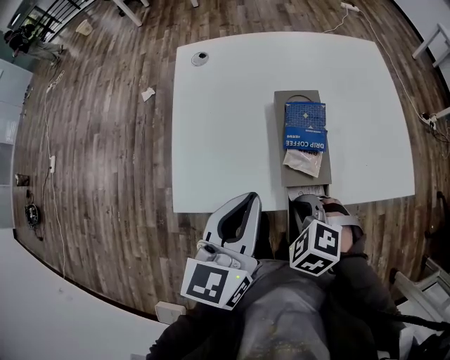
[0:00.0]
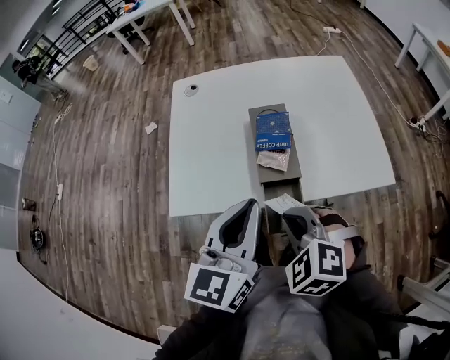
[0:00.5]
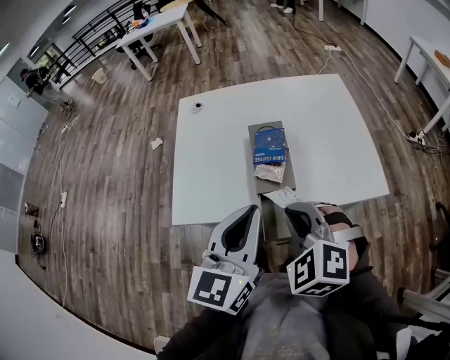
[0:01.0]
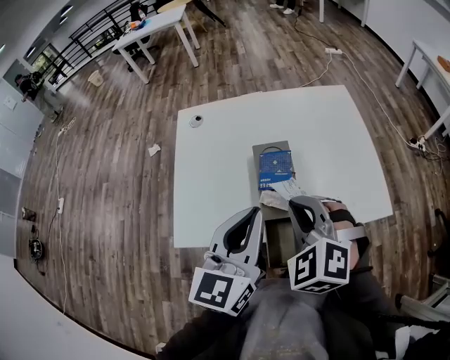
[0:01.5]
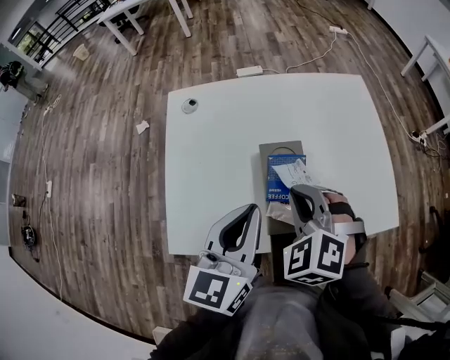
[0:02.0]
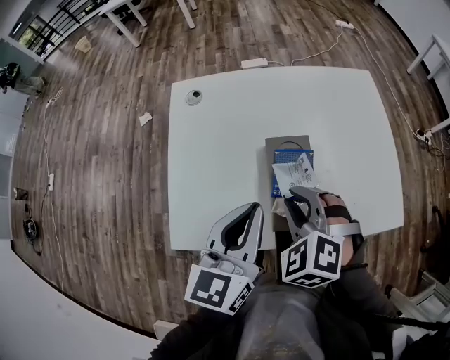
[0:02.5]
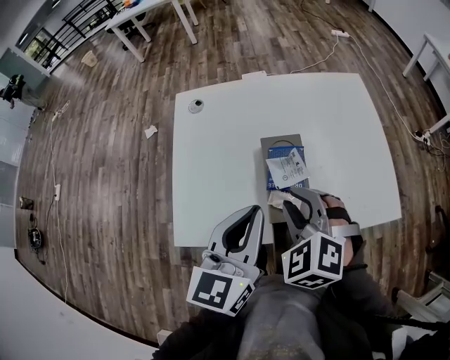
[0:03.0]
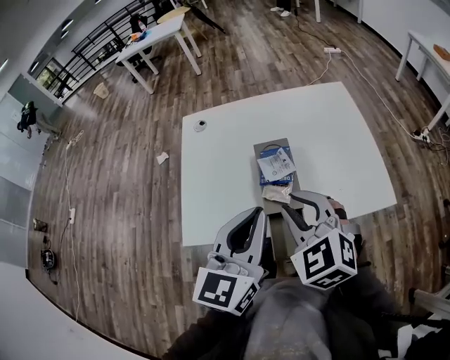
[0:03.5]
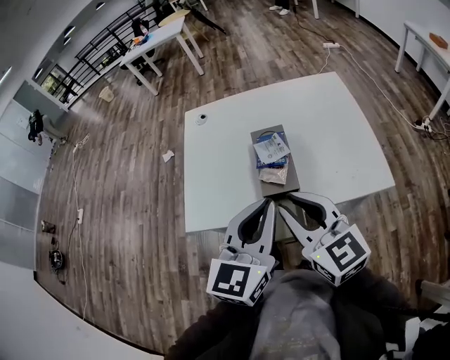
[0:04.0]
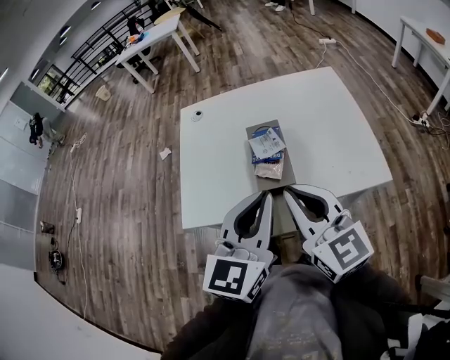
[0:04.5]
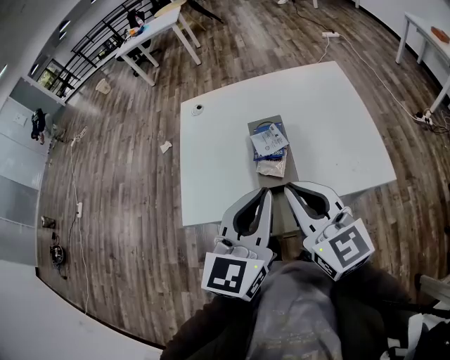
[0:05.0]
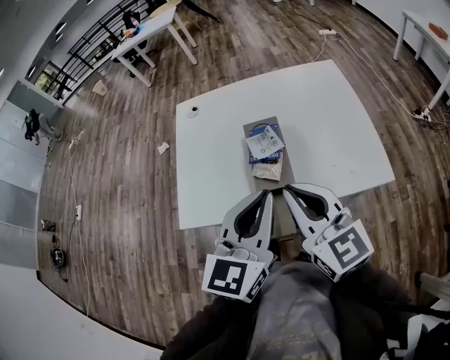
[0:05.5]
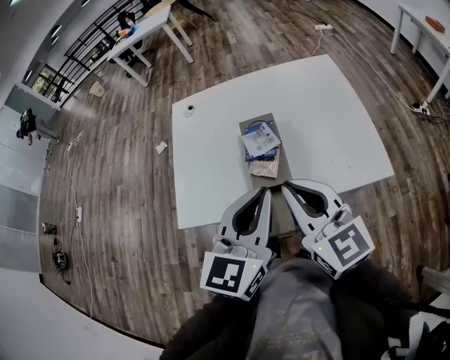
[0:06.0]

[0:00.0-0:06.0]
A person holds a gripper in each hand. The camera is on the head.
0:00.0 to 0:02.0: The right gripper shifts approximately 20 cm forward and upward, and rotates about 20 degrees. Meanwhile the left gripper moves forward, roughly 10 cm.
0:02.0 to 0:04.0: The right gripper goes approximately 20 cm backward and upward, and tips its fingers upward by roughly 40 degrees; the left gripper moves backward and to the right, approximately 15 cm.
0:04.0 to 0:06.0: There are only small adjustments of the grippers.

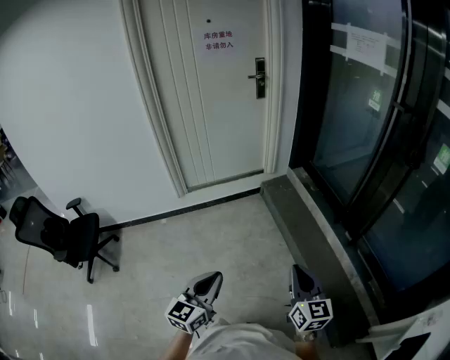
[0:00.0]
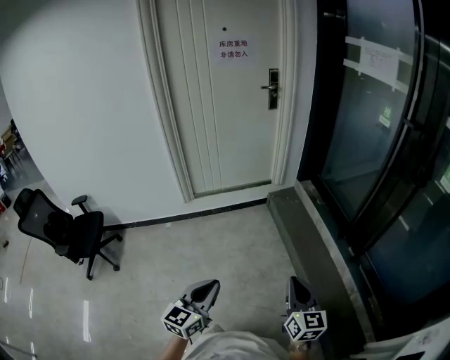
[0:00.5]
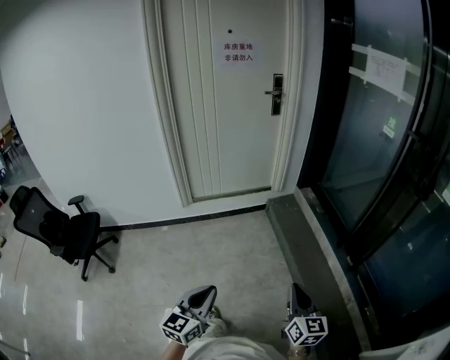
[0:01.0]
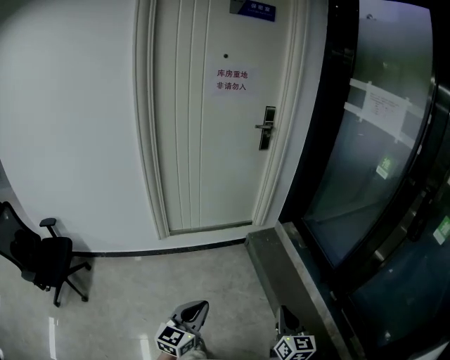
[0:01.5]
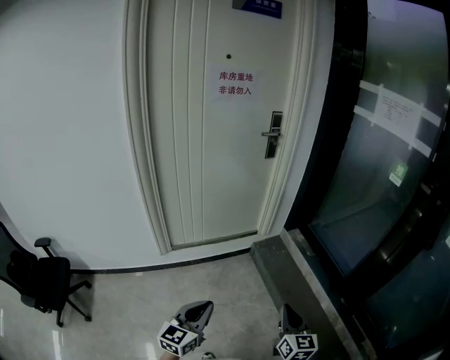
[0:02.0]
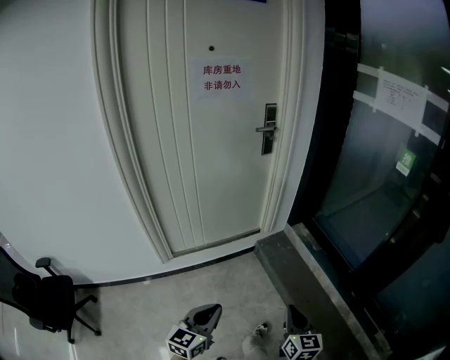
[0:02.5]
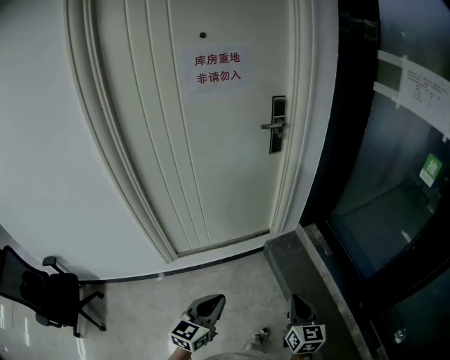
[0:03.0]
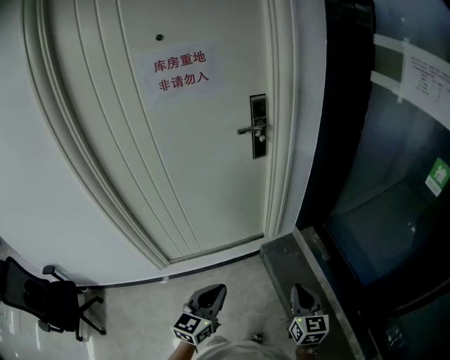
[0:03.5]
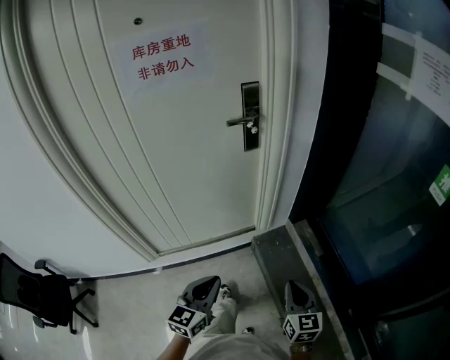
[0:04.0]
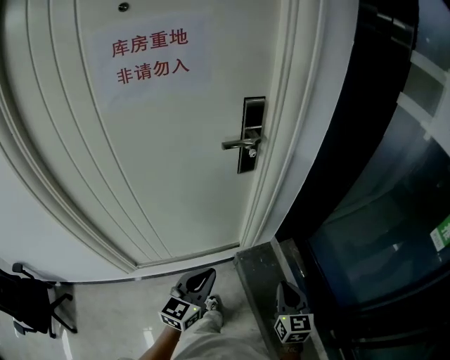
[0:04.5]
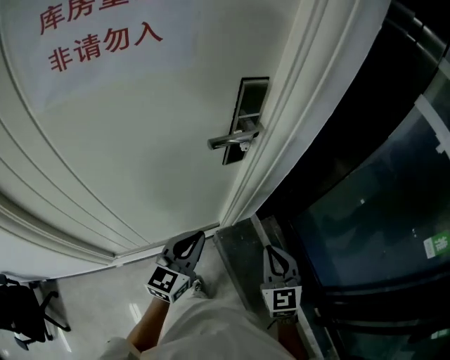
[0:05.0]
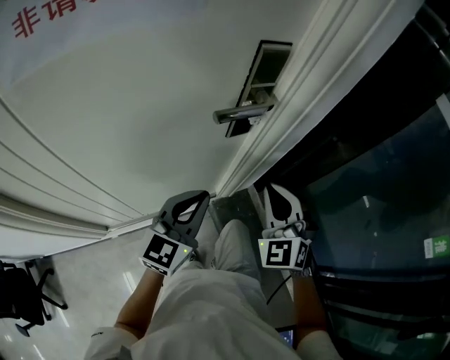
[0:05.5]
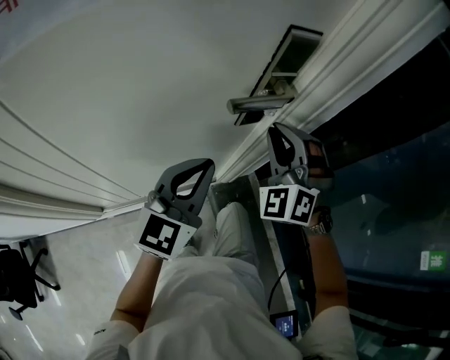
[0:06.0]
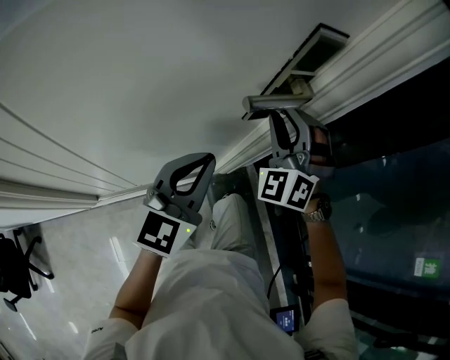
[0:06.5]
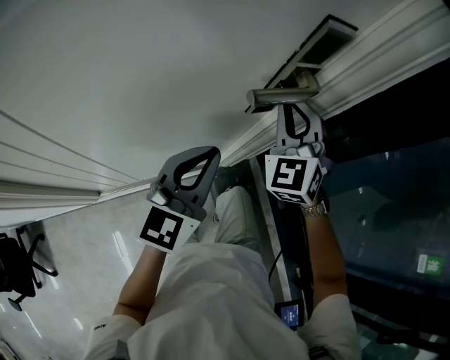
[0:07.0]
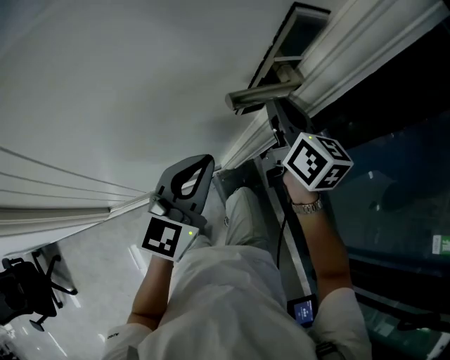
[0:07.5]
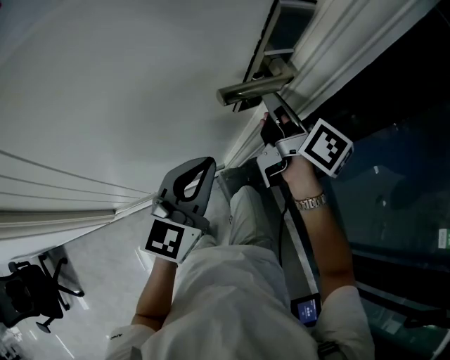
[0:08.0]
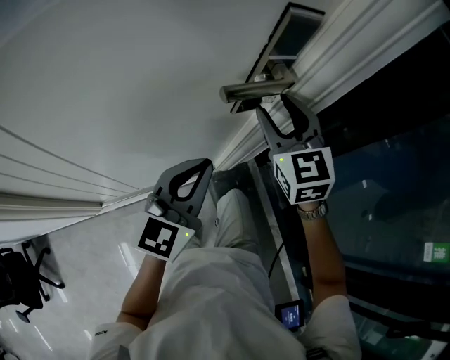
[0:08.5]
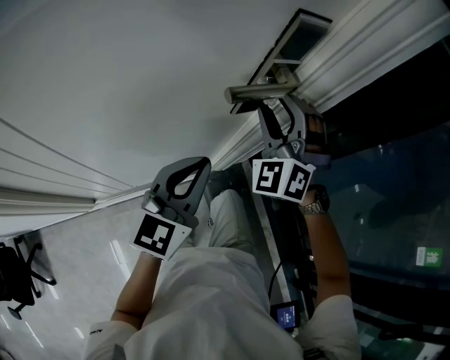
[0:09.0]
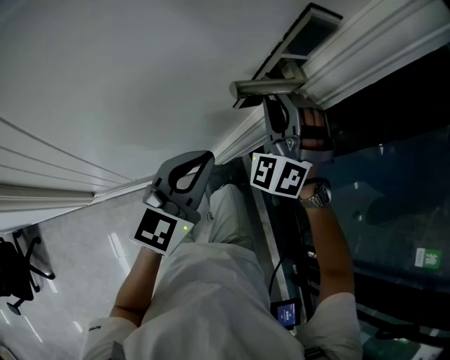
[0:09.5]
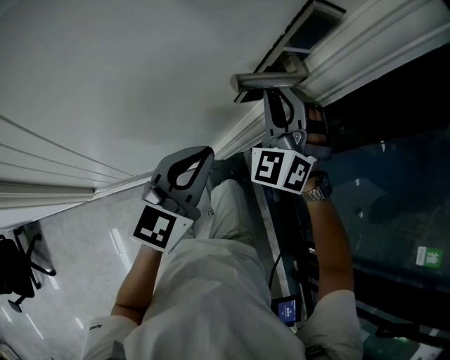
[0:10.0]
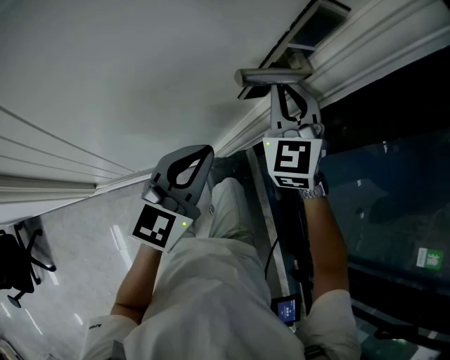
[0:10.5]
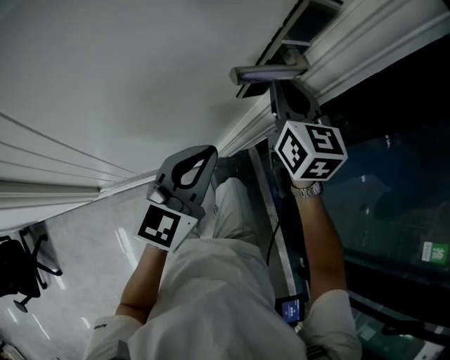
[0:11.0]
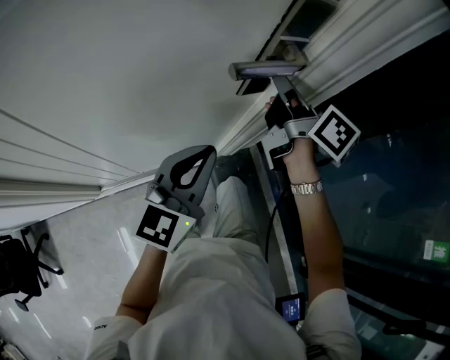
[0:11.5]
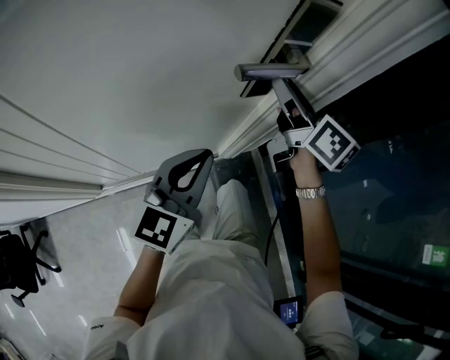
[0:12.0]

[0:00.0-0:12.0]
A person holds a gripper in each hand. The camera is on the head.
0:00.0 to 0:02.0: Both grippers move forward and to the left, about 30 cm.
0:02.0 to 0:04.0: Both grippers are carried forward, roughly 40 cm.
0:04.0 to 0:06.0: Both grippers are carried forward, about 50 cm. The right gripper rotates around the line of its fingers by approximately 80 degrees, counterclockwise from behind.
0:06.0 to 0:08.0: The right gripper shifts about 5 cm forward, twists about 110 degrees clockwise, seen from behind, and opens and closes again.
0:08.0 to 0:10.0: The right gripper rotates around the line of its fingers by about 120 degrees, counterclockwise from behind, and opens and closes again.
0:10.0 to 0:12.0: The right gripper rolls clockwise, seen from behind, by roughly 100 degrees, and opens up.

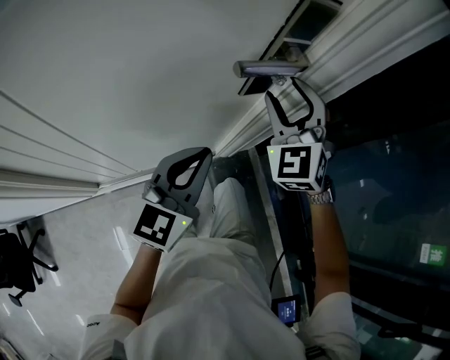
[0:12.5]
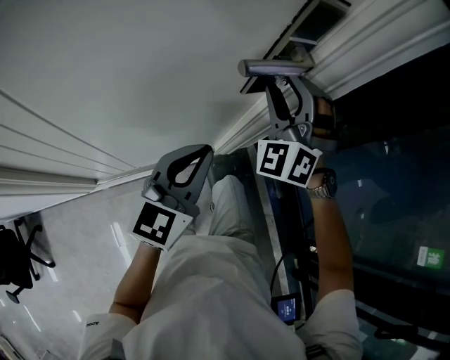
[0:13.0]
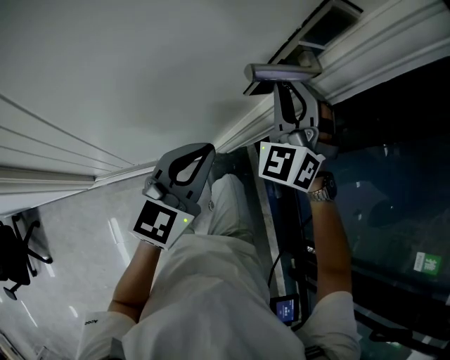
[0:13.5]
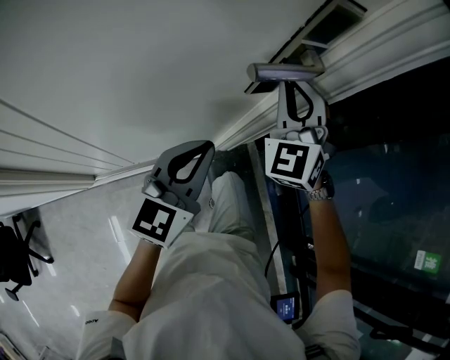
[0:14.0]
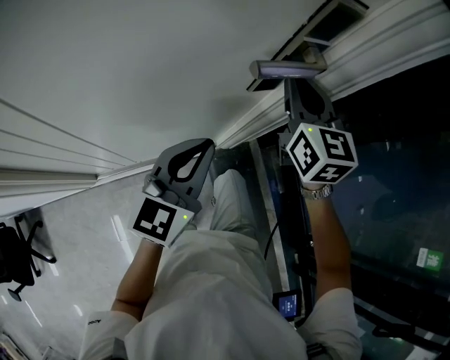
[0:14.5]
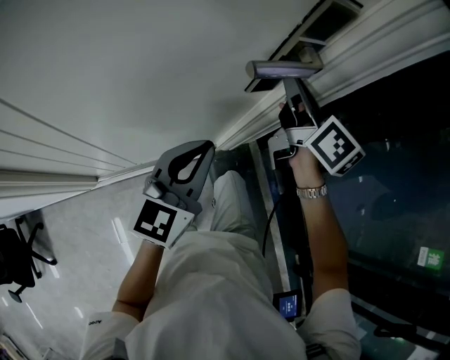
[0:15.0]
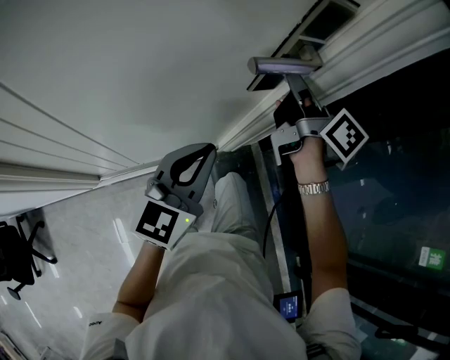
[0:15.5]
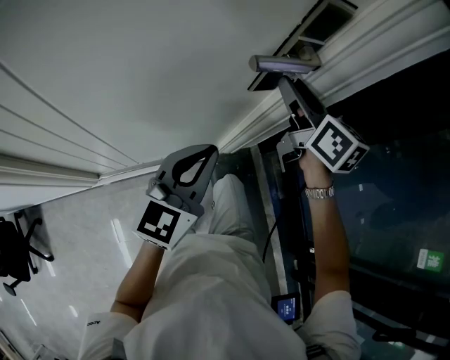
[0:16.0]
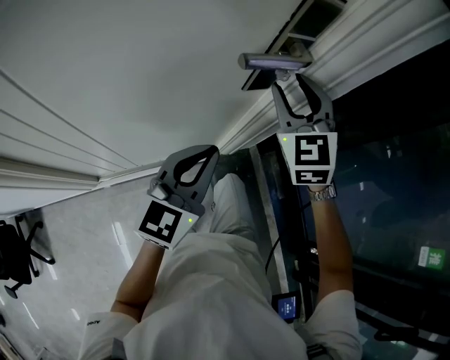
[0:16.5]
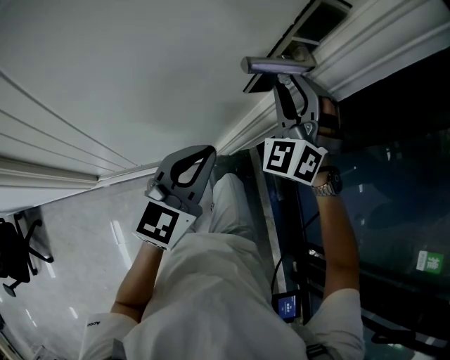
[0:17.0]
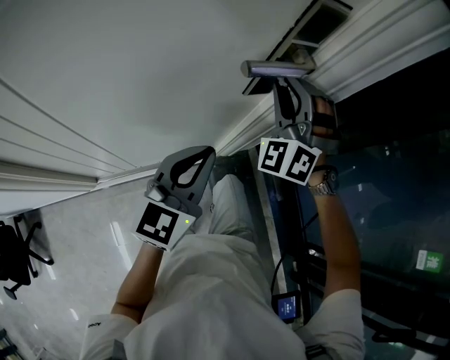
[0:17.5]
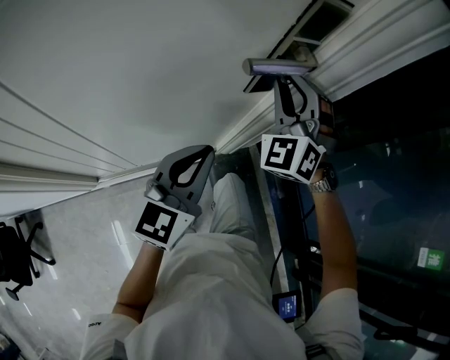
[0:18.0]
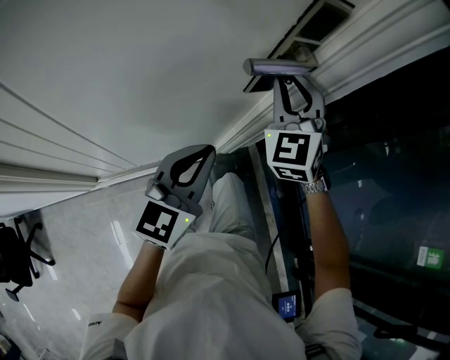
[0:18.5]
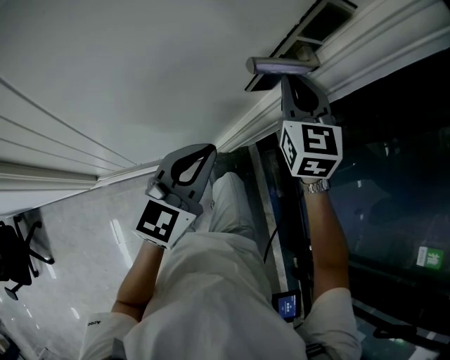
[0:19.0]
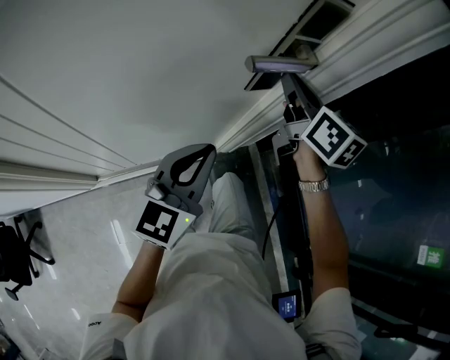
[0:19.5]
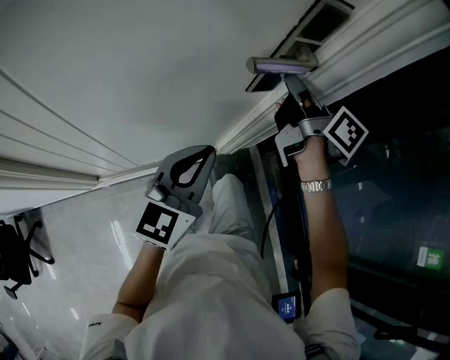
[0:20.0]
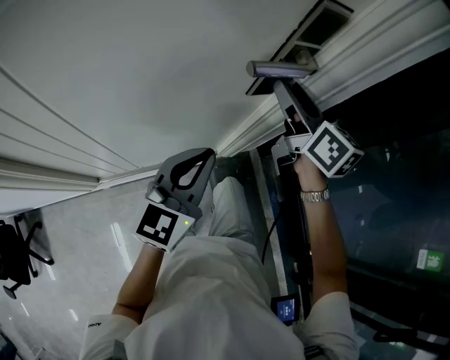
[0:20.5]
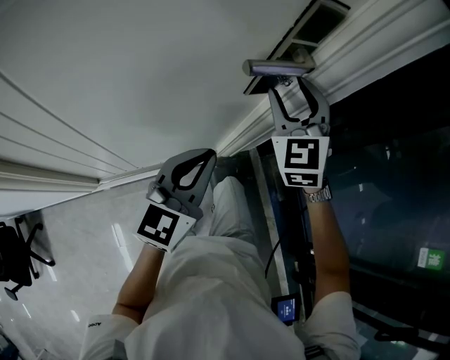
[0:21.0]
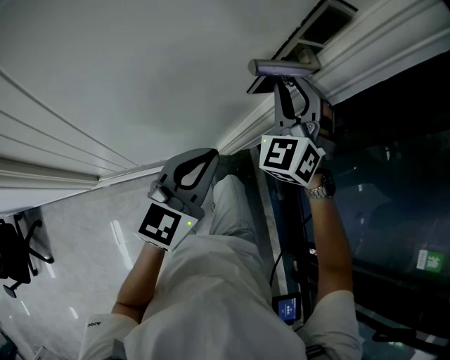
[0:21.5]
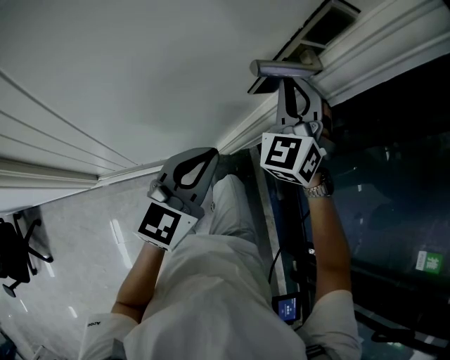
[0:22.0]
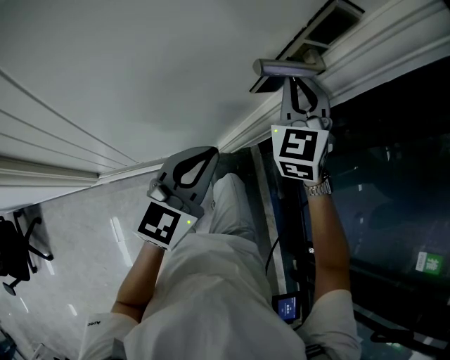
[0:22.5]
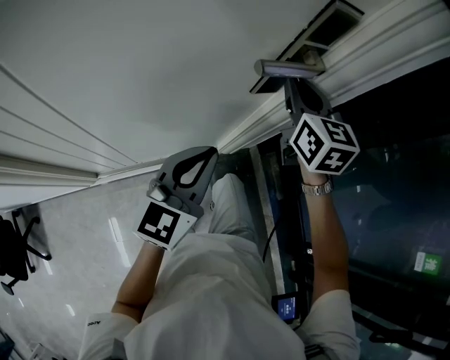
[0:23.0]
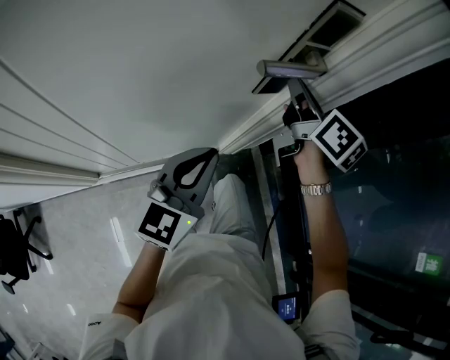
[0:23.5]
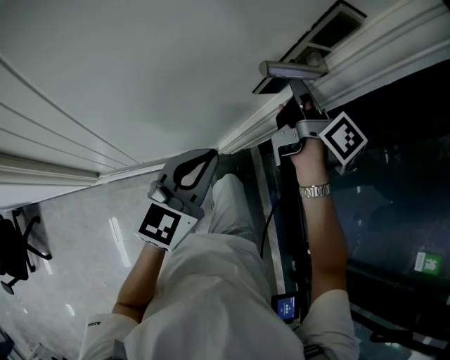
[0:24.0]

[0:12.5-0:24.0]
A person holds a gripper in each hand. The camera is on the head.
0:12.5 to 0:14.5: The right gripper rotates around the line of its fingers by about 50 degrees, clockwise from behind, and closes up.
0:14.5 to 0:16.5: The right gripper rotates some 30 degrees, and opens its fingers.
0:18.5 to 0:20.0: The right gripper rotates around the line of its fingers by about 100 degrees, clockwise from behind.
0:20.0 to 0:22.0: The right gripper rolls counterclockwise, seen from behind, by some 110 degrees, and opens and closes again.
0:22.0 to 0:24.0: The right gripper rotates around the line of its fingers by about 110 degrees, clockwise from behind.
